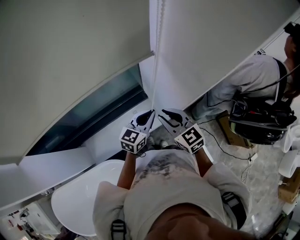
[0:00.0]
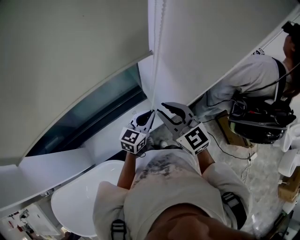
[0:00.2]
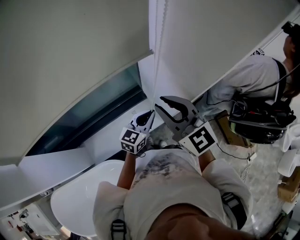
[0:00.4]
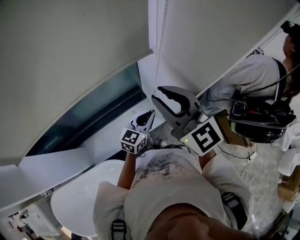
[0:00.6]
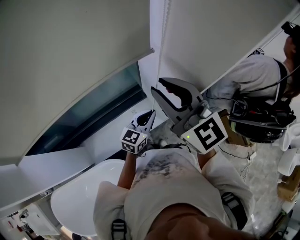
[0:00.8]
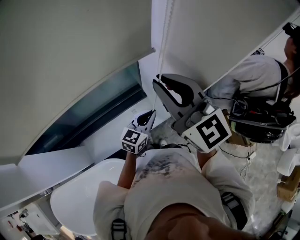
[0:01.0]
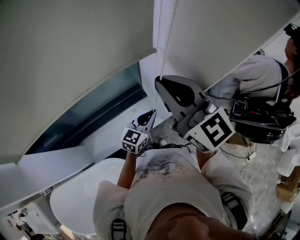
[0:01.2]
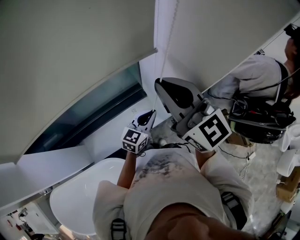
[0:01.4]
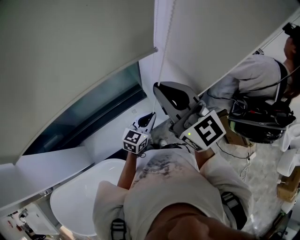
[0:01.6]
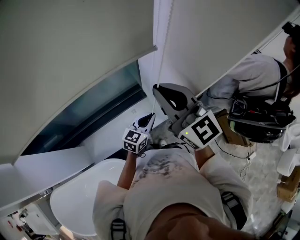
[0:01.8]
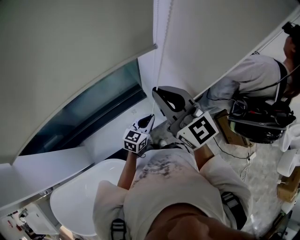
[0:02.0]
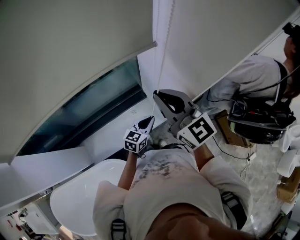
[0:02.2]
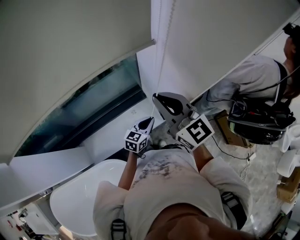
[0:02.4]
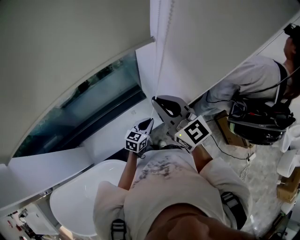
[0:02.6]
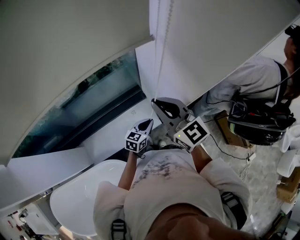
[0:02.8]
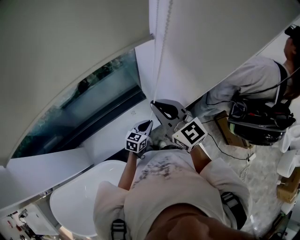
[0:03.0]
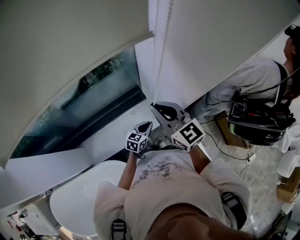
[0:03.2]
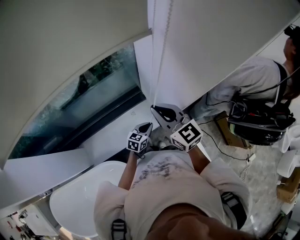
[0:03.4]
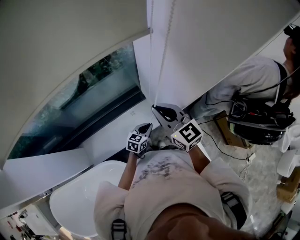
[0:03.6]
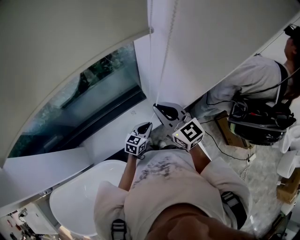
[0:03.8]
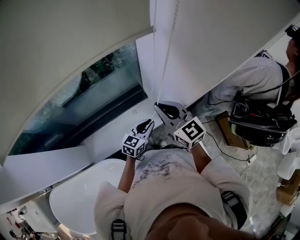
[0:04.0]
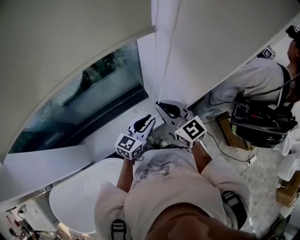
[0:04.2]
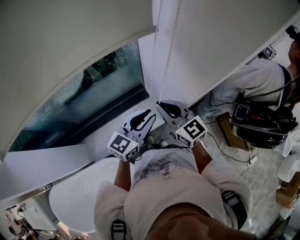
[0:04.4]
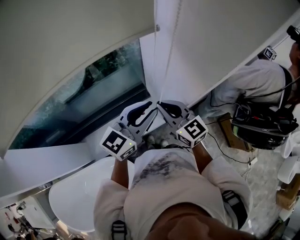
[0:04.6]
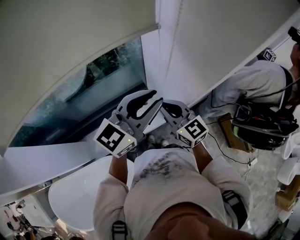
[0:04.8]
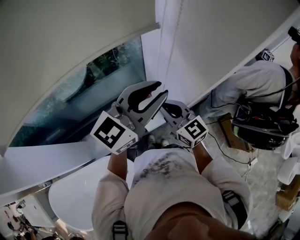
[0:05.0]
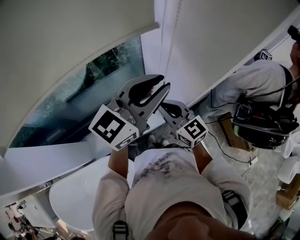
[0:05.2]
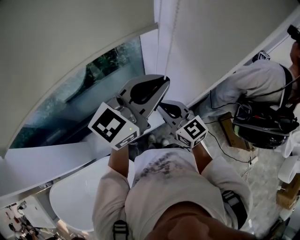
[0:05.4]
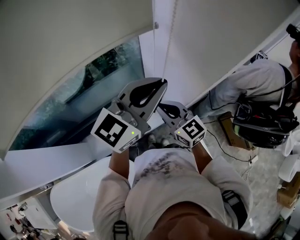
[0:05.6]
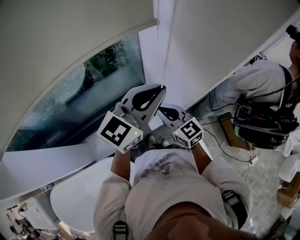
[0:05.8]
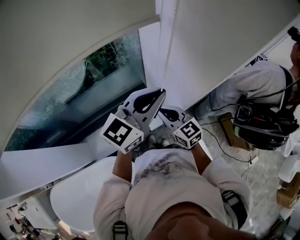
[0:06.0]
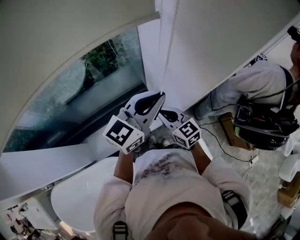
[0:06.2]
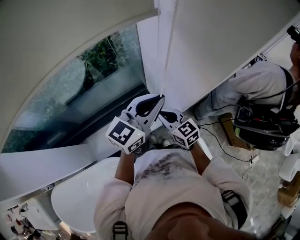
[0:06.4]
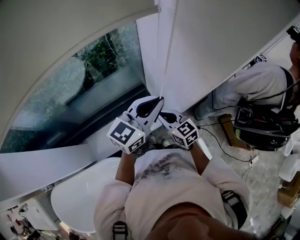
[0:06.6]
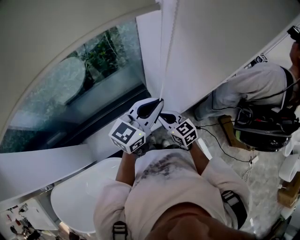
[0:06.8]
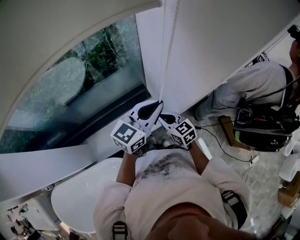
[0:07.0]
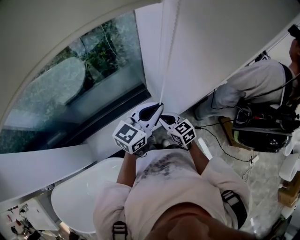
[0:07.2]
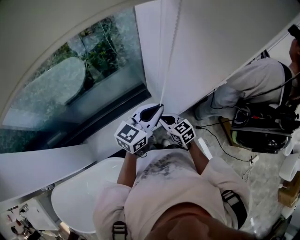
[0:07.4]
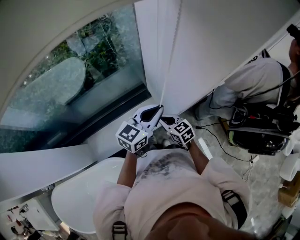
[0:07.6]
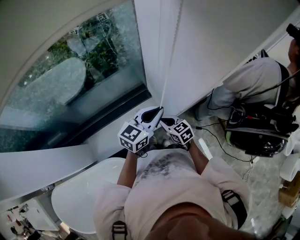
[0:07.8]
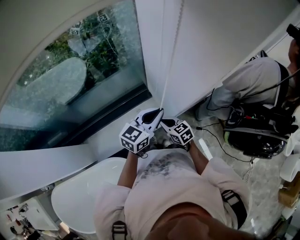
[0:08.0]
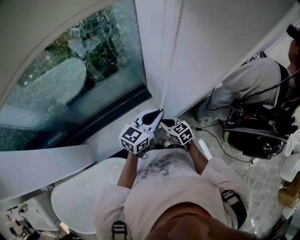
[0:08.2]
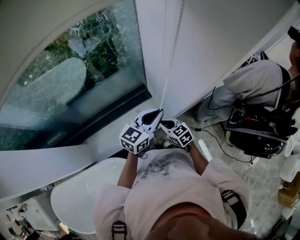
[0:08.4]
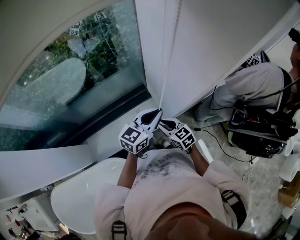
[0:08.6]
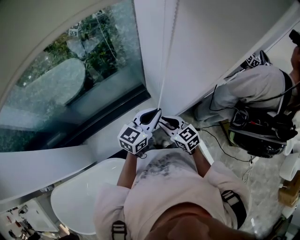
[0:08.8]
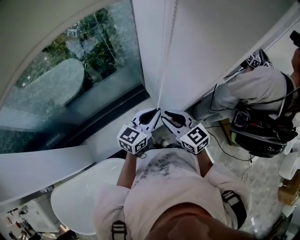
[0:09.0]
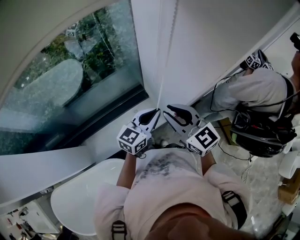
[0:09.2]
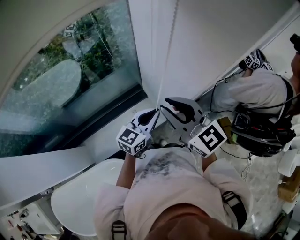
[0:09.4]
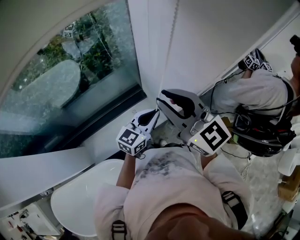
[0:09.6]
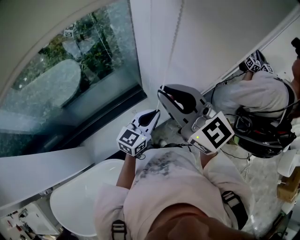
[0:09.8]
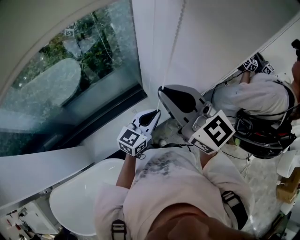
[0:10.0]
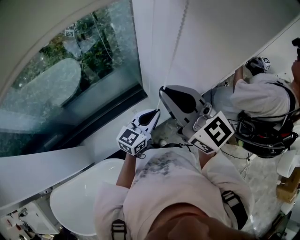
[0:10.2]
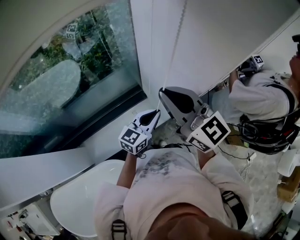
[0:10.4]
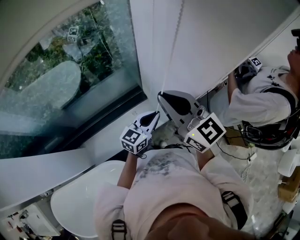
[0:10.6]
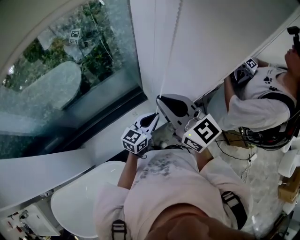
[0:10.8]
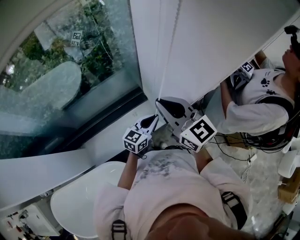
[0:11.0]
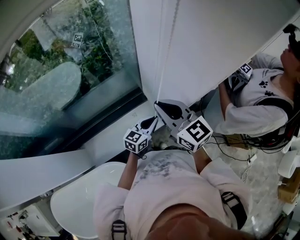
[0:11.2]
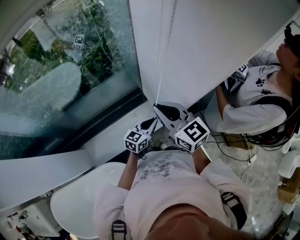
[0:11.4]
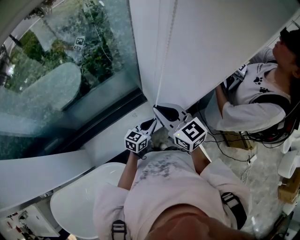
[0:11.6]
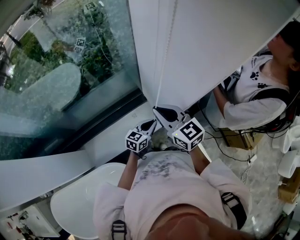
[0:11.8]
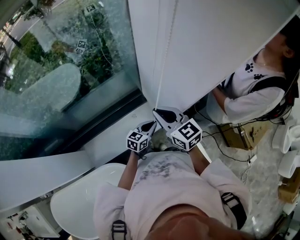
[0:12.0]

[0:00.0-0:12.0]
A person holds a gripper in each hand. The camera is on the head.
0:00.0 to 0:01.6: The right gripper travels upward by some 20 cm, and changes its angle by roughly 20 degrees.
0:01.6 to 0:03.0: Both grippers move downward, about 10 cm.
0:03.0 to 0:04.4: The right gripper shifts by approximately 5 cm. Meanwhile the left gripper is displaced upward by some 20 cm, and swivels roughly 20 degrees.
0:04.4 to 0:06.0: The left gripper travels upward by approximately 15 cm. Meanwhile the right gripper is displaced downward by roughly 5 cm.
0:06.0 to 0:07.6: The two grippers go about 15 cm downward.
0:07.6 to 0:09.0: The right gripper travels upward by approximately 15 cm.
0:09.0 to 0:10.4: The right gripper goes some 20 cm upward, and turns by about 20 degrees.
0:10.4 to 0:12.0: The two grippers go roughly 15 cm downward.

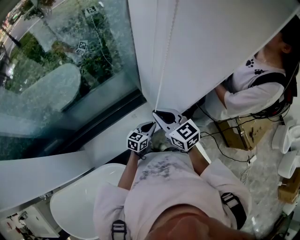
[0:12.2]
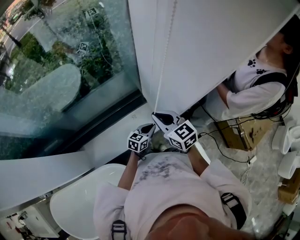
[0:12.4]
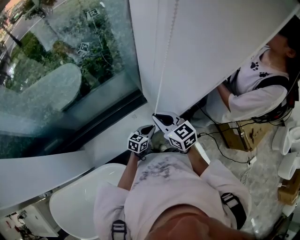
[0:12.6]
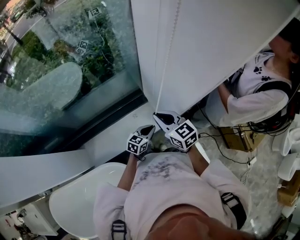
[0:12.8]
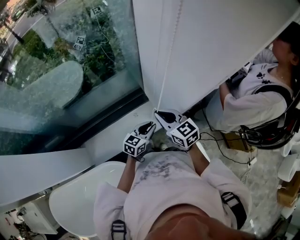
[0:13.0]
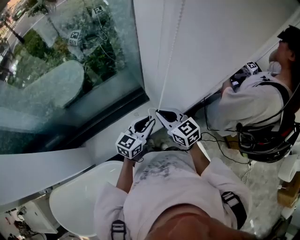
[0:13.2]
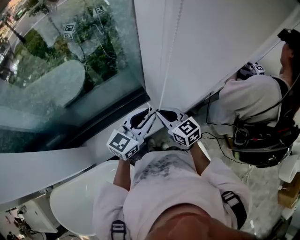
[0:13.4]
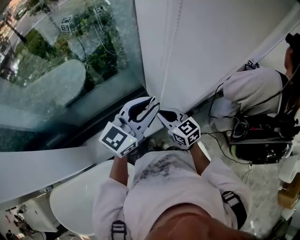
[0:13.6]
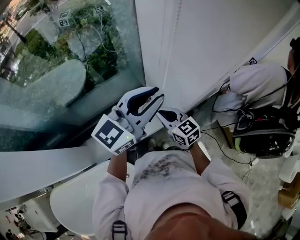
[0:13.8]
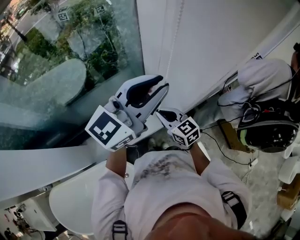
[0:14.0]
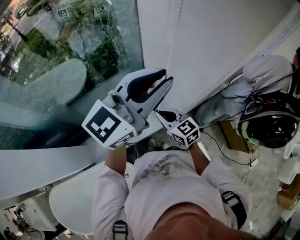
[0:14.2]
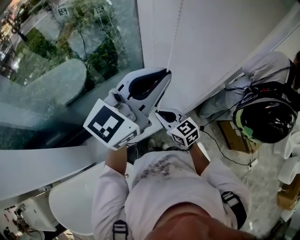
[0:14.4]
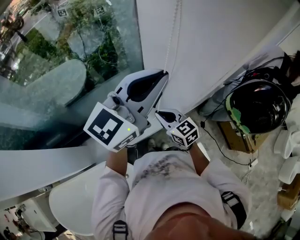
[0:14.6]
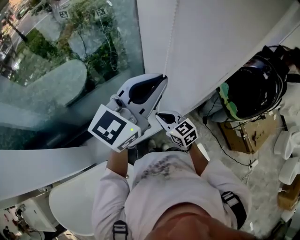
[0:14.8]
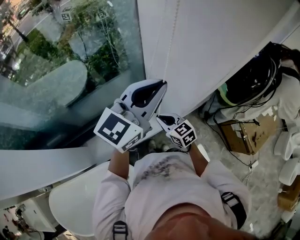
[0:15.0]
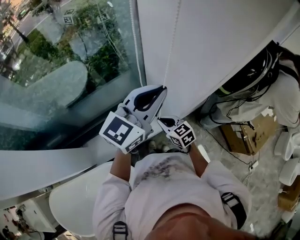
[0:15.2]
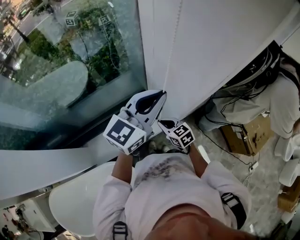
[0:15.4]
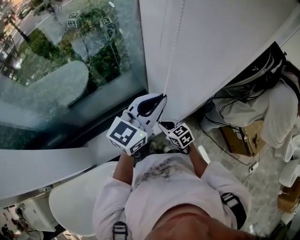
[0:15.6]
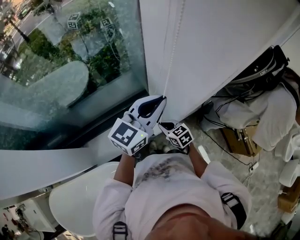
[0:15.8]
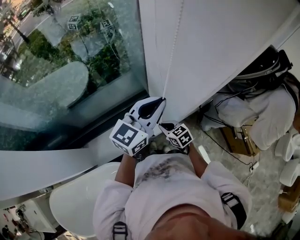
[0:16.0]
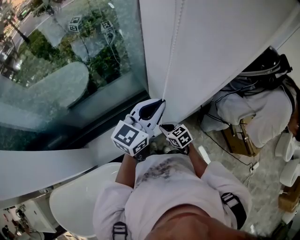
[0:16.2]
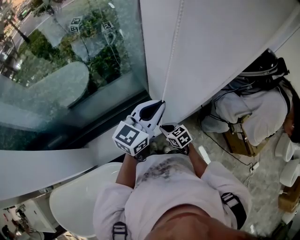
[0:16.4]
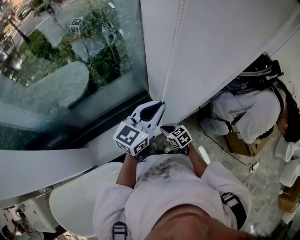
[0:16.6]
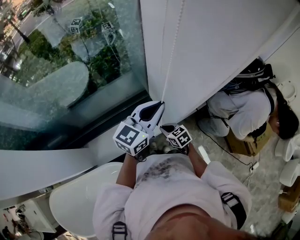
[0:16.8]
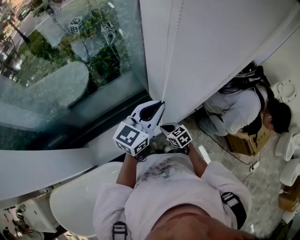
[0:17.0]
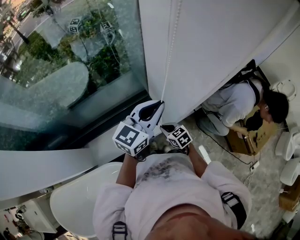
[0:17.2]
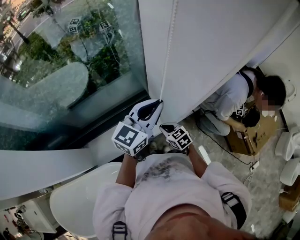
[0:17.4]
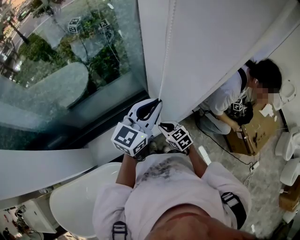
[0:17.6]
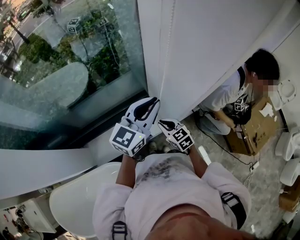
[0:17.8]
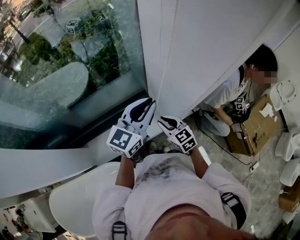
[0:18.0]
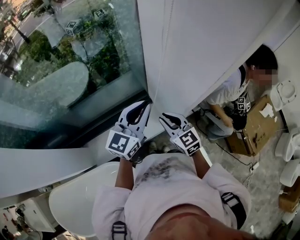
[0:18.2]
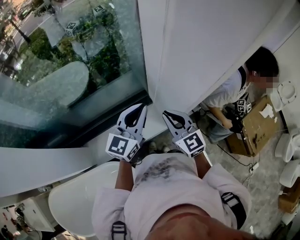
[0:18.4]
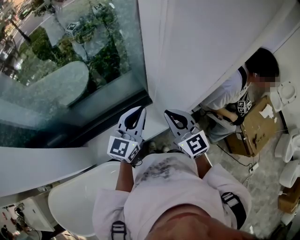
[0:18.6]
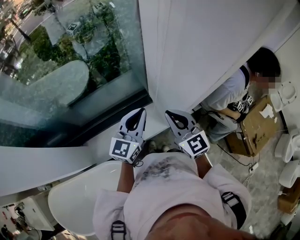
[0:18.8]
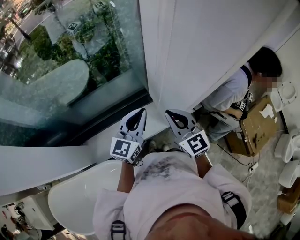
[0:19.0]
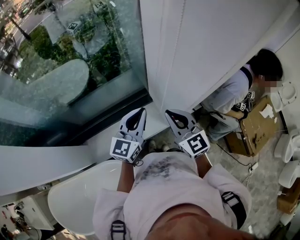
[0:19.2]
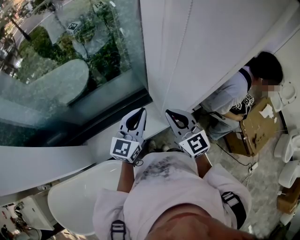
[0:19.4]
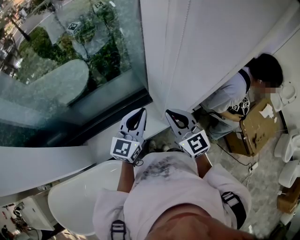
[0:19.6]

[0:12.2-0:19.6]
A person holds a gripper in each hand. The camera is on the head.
0:12.2 to 0:13.6: The left gripper moves upward, about 35 cm, and turns by approximately 30 degrees.
0:13.6 to 0:15.2: The left gripper goes roughly 5 cm upward. Meanwhile the right gripper is displaced downward by roughly 5 cm.
0:15.2 to 0:16.6: The two grippers go approximately 10 cm downward.
0:16.6 to 0:18.2: The right gripper travels upward by some 20 cm, and rotates roughly 30 degrees.
0:18.2 to 0:19.6: The right gripper shifts some 5 cm upward.

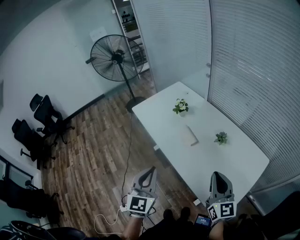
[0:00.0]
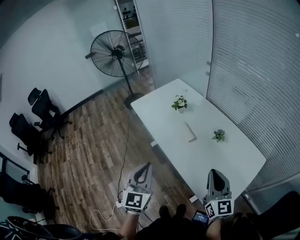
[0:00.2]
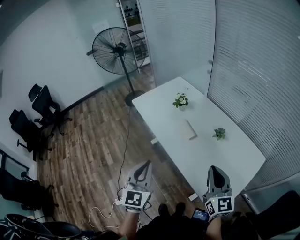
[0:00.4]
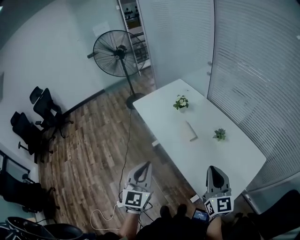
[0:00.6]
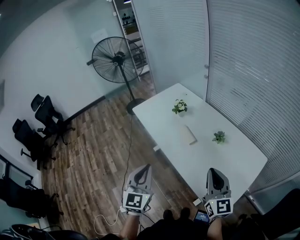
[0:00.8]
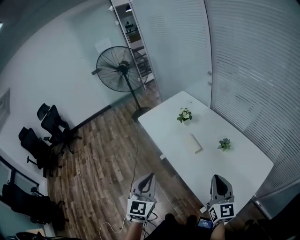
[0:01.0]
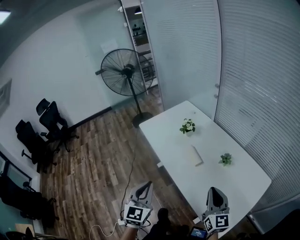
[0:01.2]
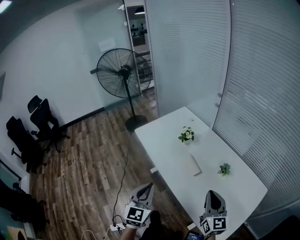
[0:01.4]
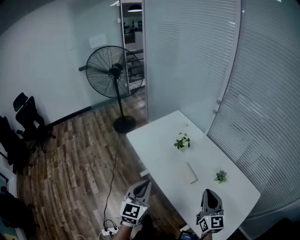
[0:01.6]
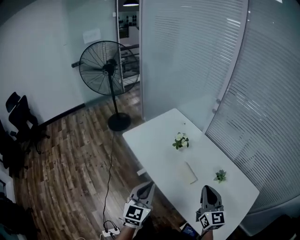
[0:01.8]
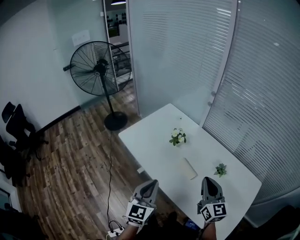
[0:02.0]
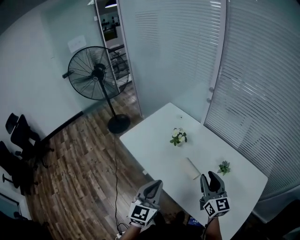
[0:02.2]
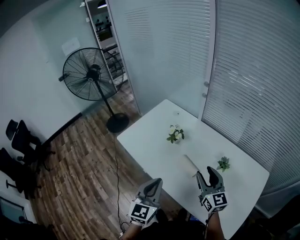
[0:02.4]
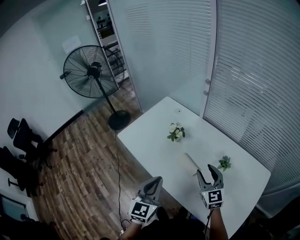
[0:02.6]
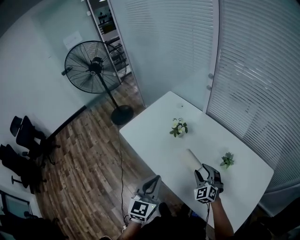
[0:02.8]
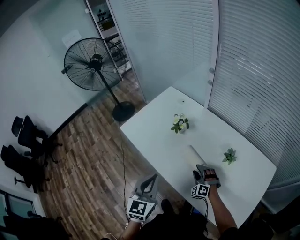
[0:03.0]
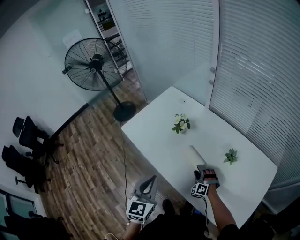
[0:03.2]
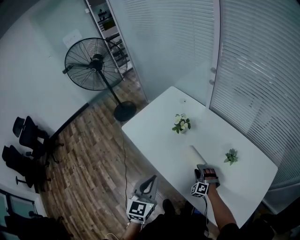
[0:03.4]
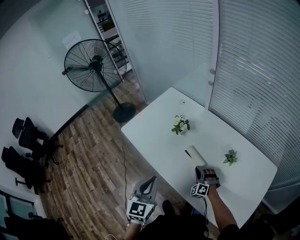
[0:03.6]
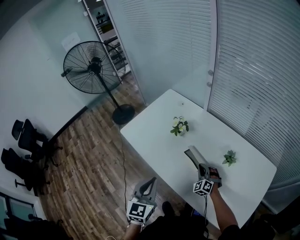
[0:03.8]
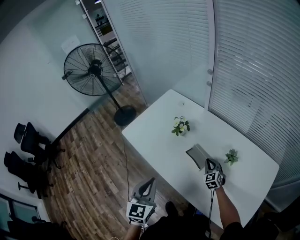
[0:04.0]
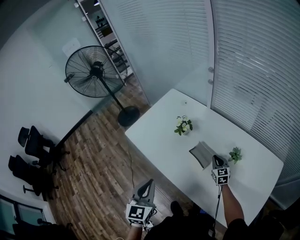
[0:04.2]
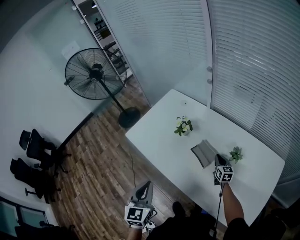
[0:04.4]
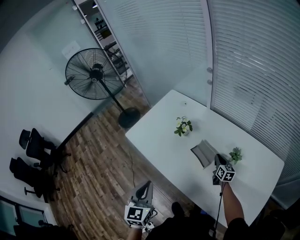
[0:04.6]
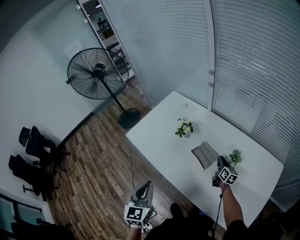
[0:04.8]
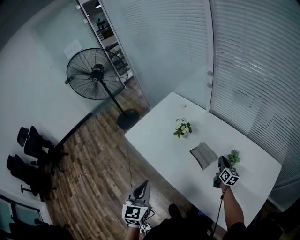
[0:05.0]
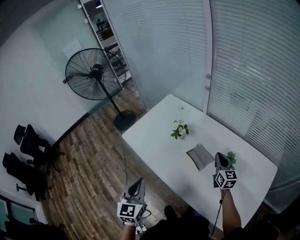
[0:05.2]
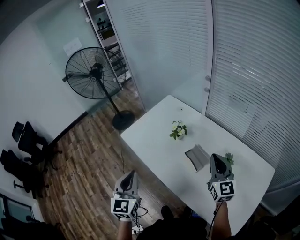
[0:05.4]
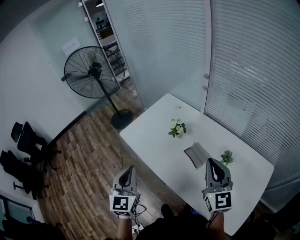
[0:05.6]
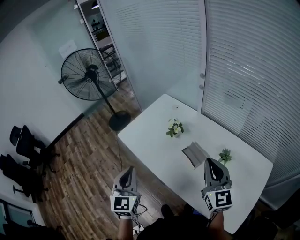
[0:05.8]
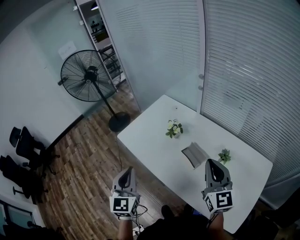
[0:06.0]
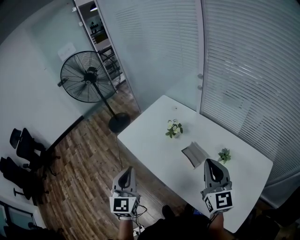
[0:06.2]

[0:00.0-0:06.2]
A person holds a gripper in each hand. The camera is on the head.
0:00.0 to 0:01.6: Both grippers move forward and to the left, some 20 cm.
0:01.6 to 0:03.2: The right gripper travels downward and forward by approximately 35 cm, rotates around the line of its fingers by roughly 60 degrees, counterclockwise from behind, and opens. Meanwhile the left gripper moves forward, roughly 5 cm.
0:03.2 to 0:04.6: The right gripper goes roughly 15 cm to the right and forward, rotates around the line of its fingers by approximately 90 degrees, clockwise from behind, and closes up.
0:04.6 to 0:06.2: The right gripper moves upward and backward, about 40 cm, and rotates about 40 degrees. The left gripper is displaced upward by roughly 10 cm.